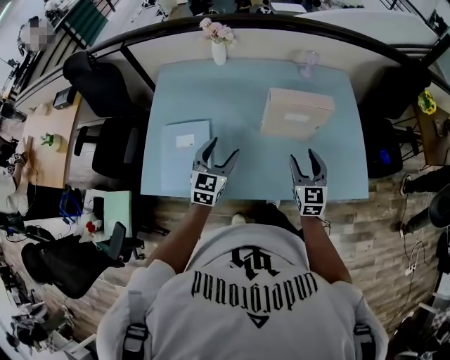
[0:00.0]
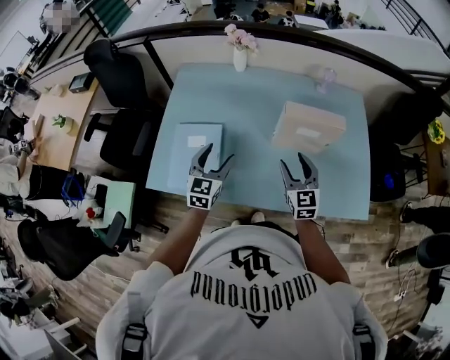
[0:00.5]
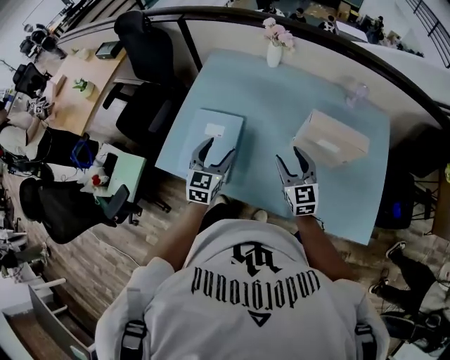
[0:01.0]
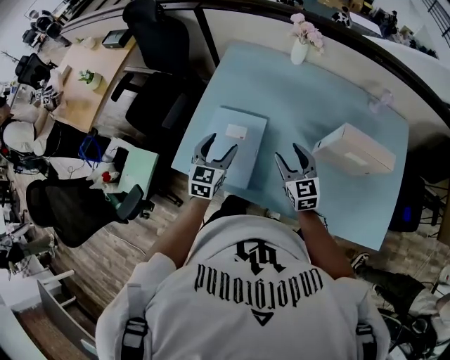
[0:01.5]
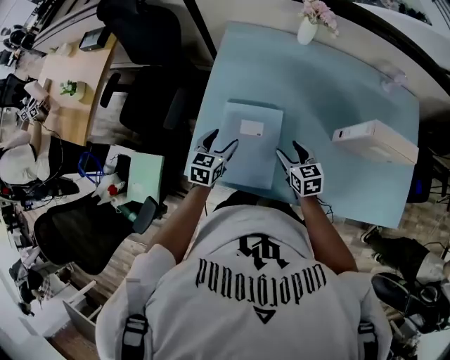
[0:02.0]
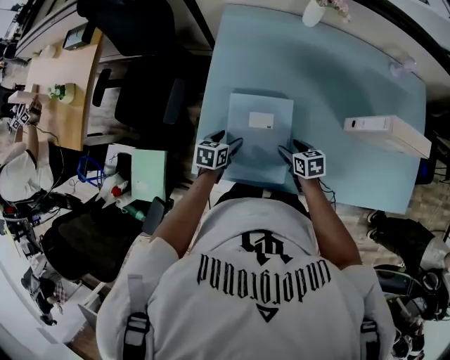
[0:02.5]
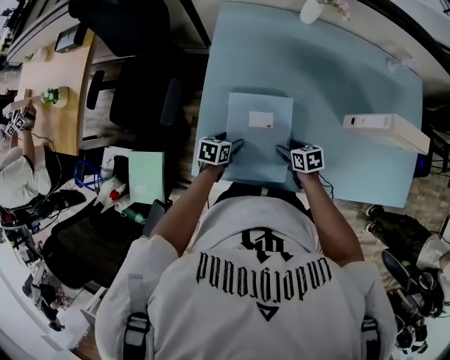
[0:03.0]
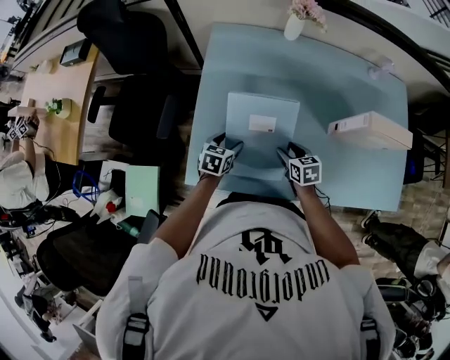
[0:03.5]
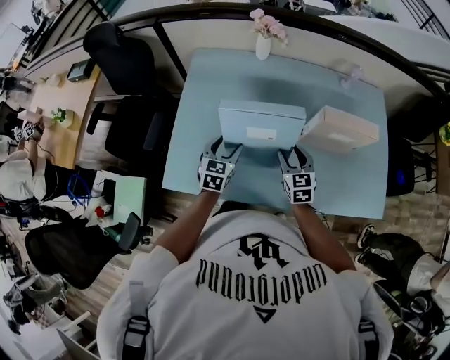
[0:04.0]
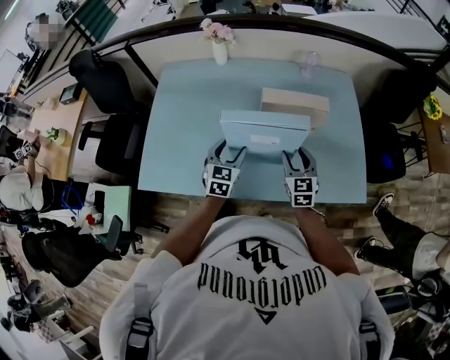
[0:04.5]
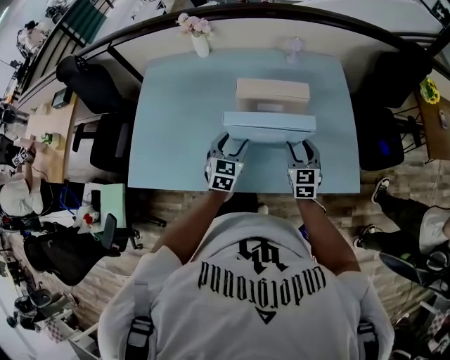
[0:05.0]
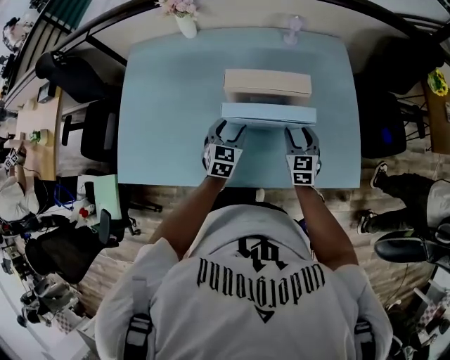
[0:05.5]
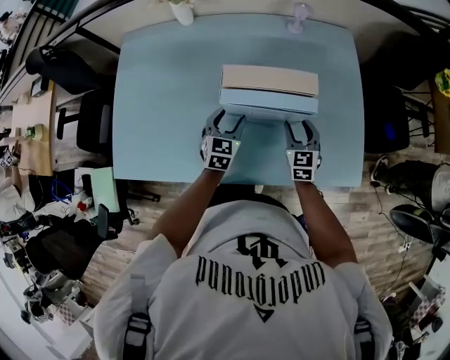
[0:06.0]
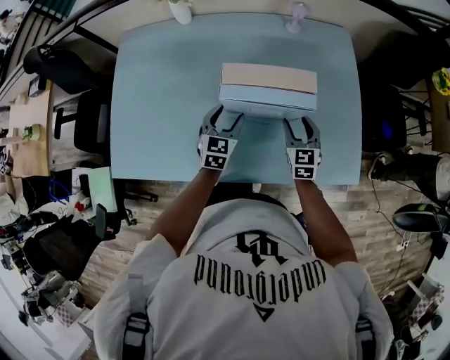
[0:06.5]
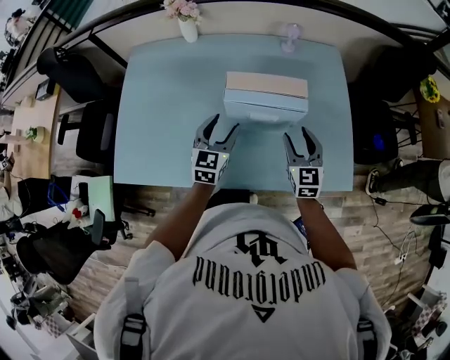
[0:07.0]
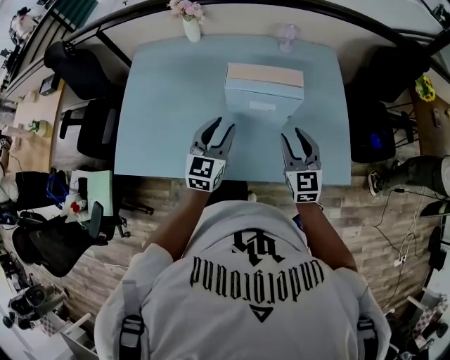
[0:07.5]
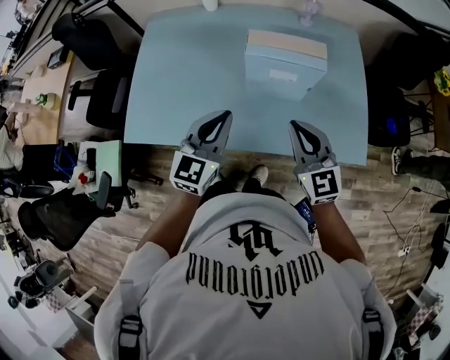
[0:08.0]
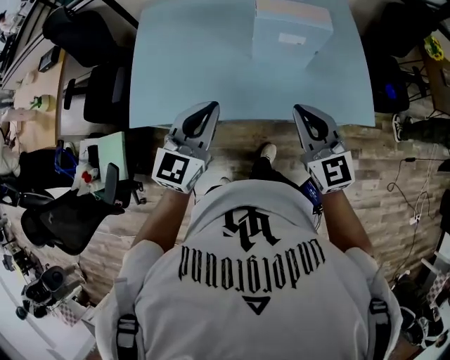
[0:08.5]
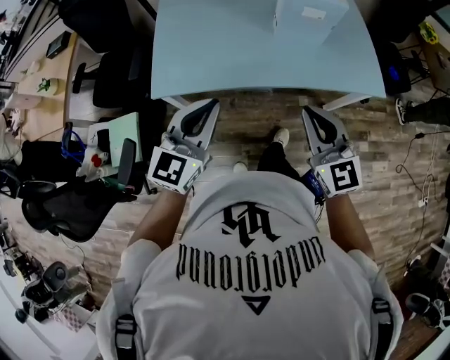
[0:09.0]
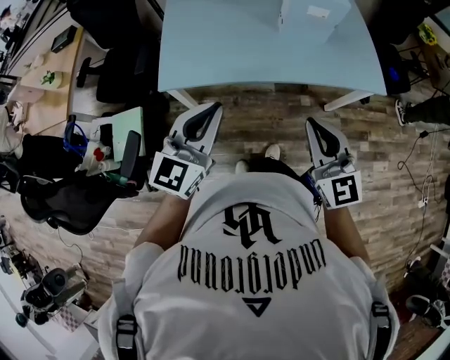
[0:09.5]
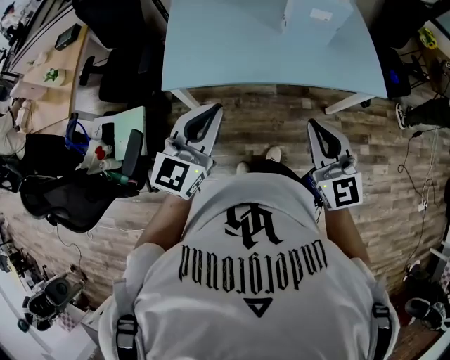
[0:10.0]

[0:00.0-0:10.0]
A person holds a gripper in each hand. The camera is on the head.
0:00.0 to 0:02.0: The right gripper ends up approximately 40 cm from where it was, and changes its angle by roughly 40 degrees. The left gripper changes place by about 35 cm, and turns by roughly 30 degrees.
0:02.0 to 0:04.0: The left gripper goes roughly 15 cm to the right, and moves about 15 cm downward and comes back, while the right gripper travels to the right and upward by roughly 15 cm, and rotates approximately 20 degrees.
0:04.0 to 0:06.0: Both grippers move to the right, about 30 cm.
0:06.0 to 0:08.0: Both grippers move upward and backward, about 30 cm. The left gripper swivels some 20 degrees, and closes; the right gripper turns by roughly 30 degrees, and closes up.
0:08.0 to 0:10.0: The two grippers go roughly 40 cm backward and to the left.

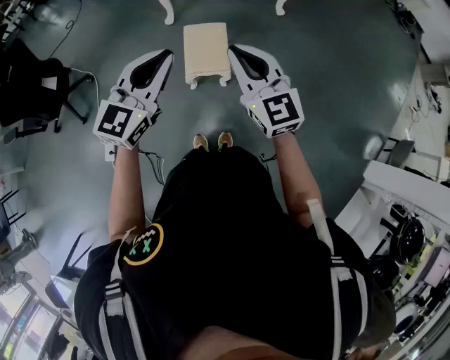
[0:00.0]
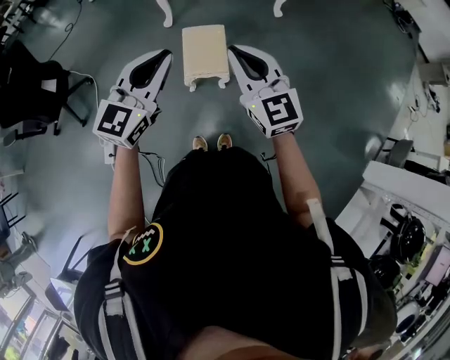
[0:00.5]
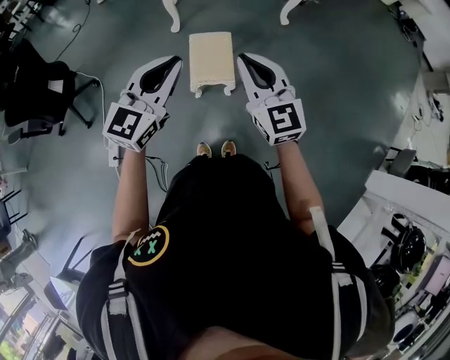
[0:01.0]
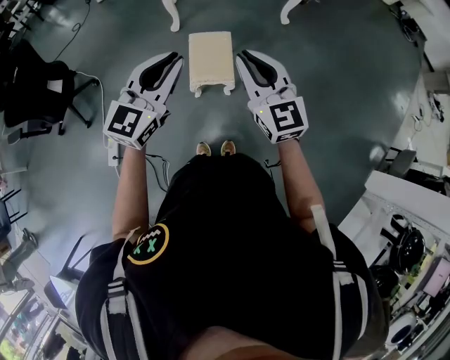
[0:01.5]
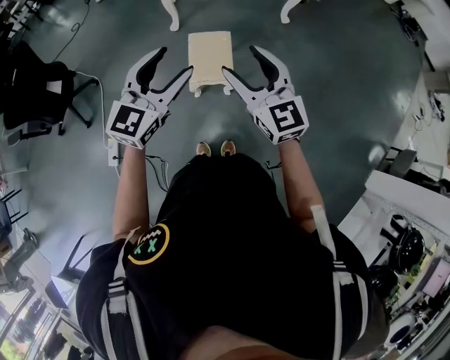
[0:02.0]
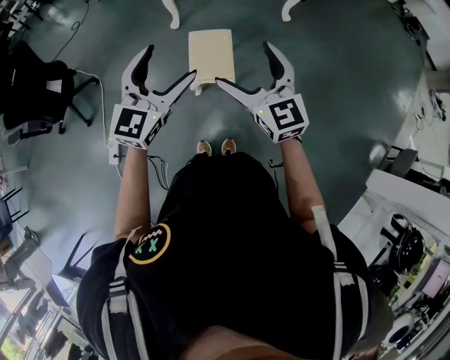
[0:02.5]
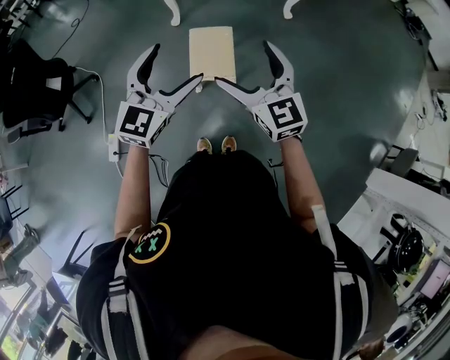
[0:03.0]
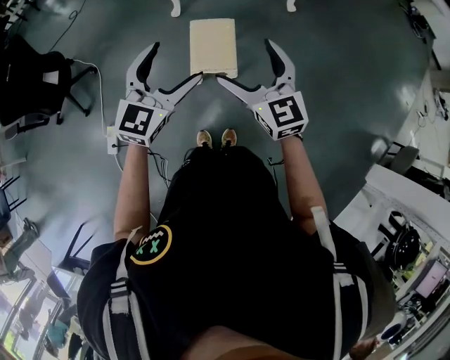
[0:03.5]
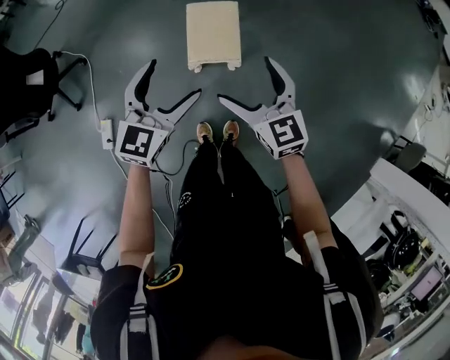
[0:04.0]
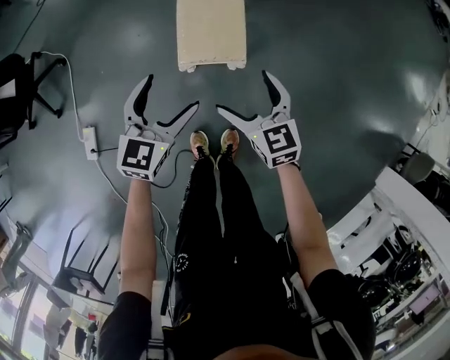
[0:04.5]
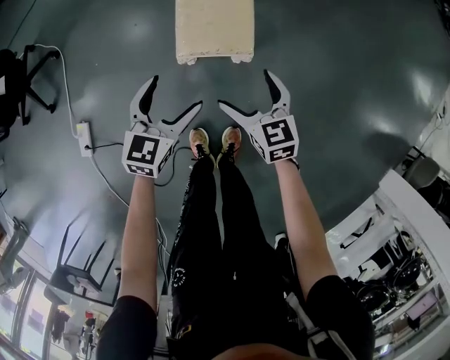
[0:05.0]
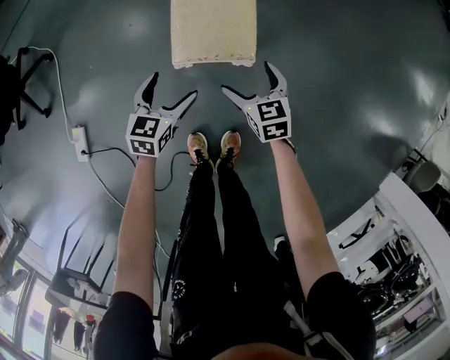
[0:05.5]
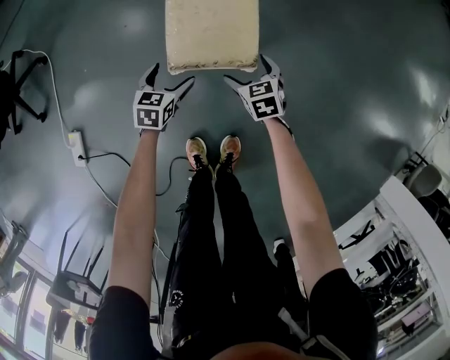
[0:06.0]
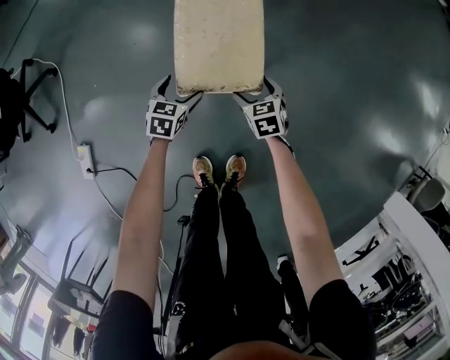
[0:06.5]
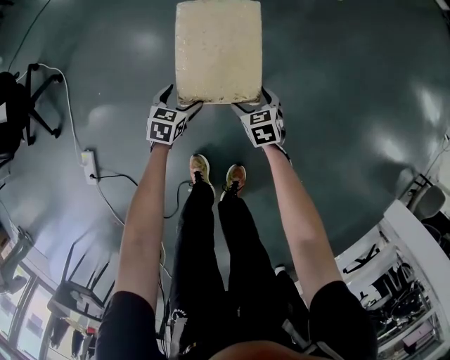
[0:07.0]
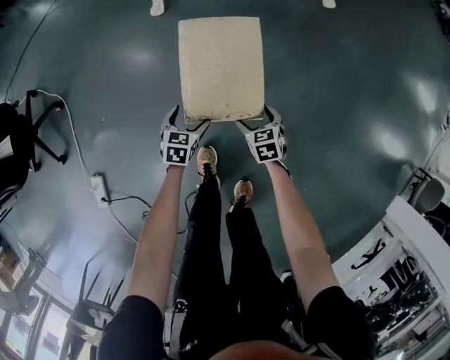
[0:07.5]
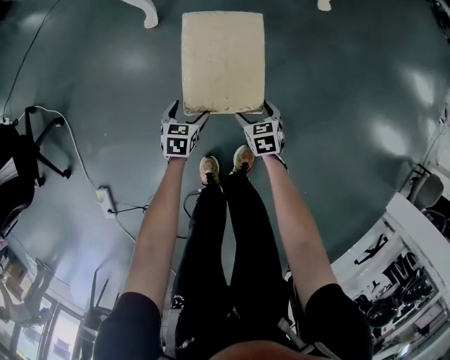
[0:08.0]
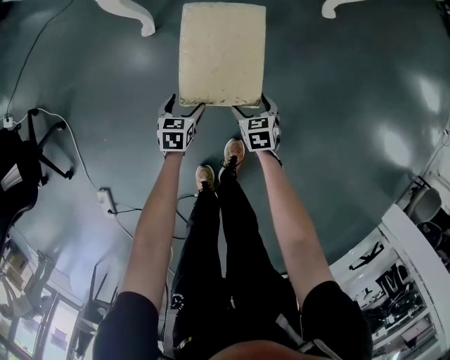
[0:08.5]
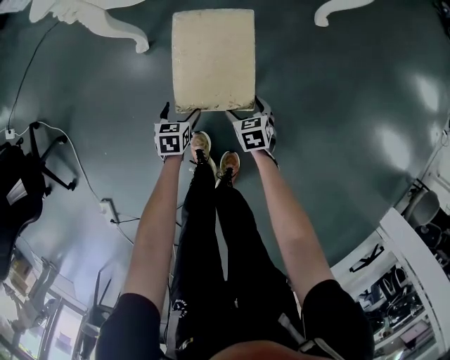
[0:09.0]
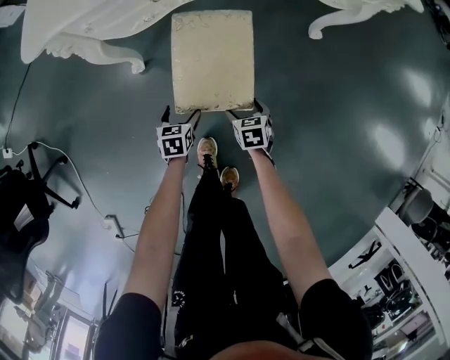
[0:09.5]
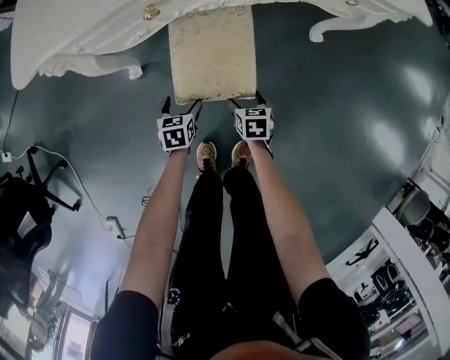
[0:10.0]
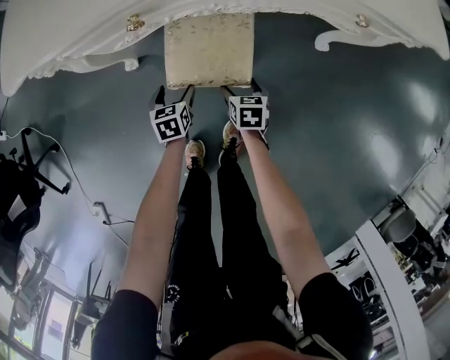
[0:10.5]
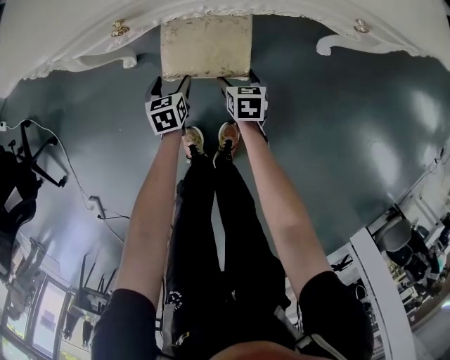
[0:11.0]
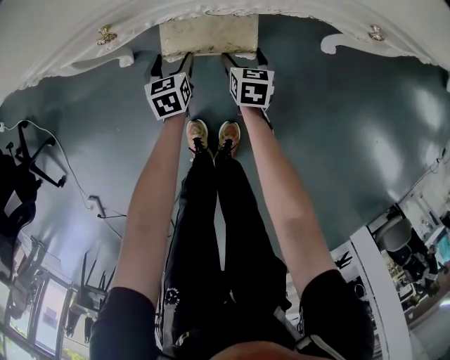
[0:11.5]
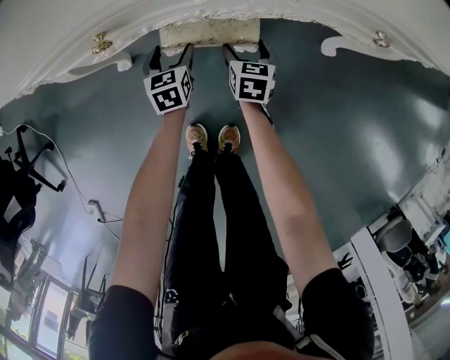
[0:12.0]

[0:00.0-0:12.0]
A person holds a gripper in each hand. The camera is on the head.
0:00.0 to 0:02.0: The right gripper opens its fingers. The left gripper opens its fingers.
0:02.0 to 0:04.0: The two grippers go some 20 cm downward. The left gripper opens. The right gripper opens up.
0:04.0 to 0:06.0: Both grippers travel together downward, about 60 cm. The right gripper tips its fingers downward by approximately 30 degrees. The left gripper turns by about 40 degrees.
0:06.0 to 0:08.0: The two grippers go roughly 20 cm forward.
0:08.0 to 0:10.0: Both grippers move forward, approximately 35 cm.
0:10.0 to 0:12.0: Both grippers travel together forward, approximately 20 cm. The left gripper rotates approximately 20 degrees.

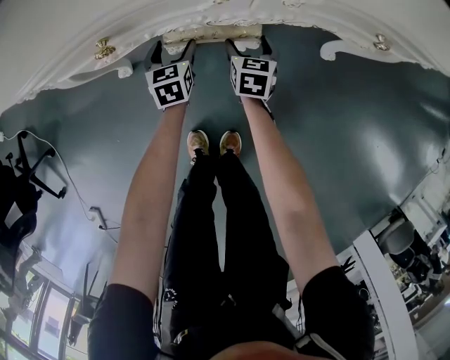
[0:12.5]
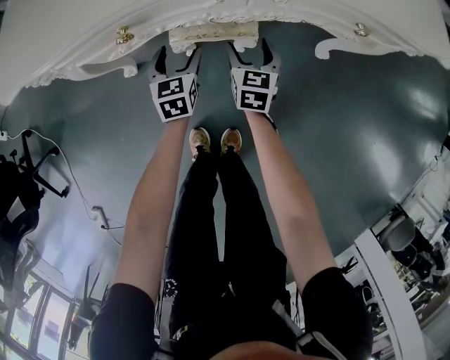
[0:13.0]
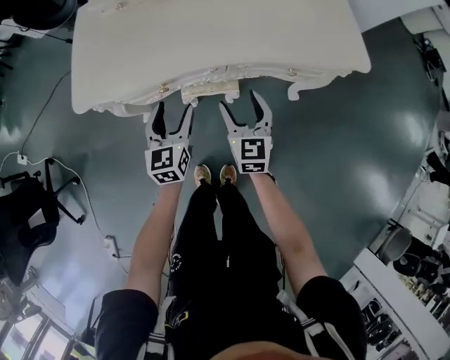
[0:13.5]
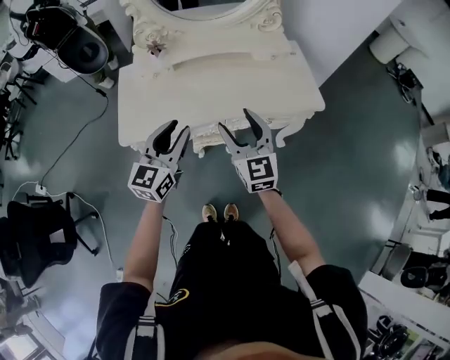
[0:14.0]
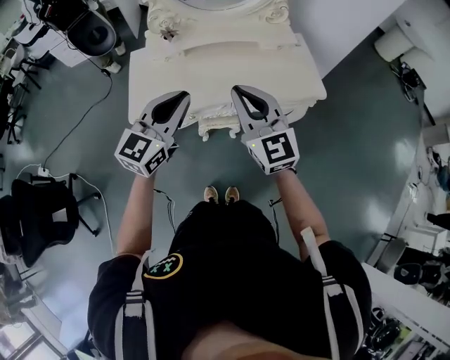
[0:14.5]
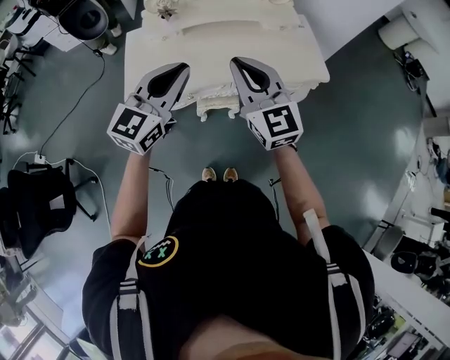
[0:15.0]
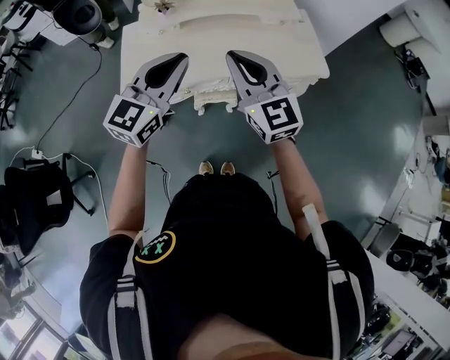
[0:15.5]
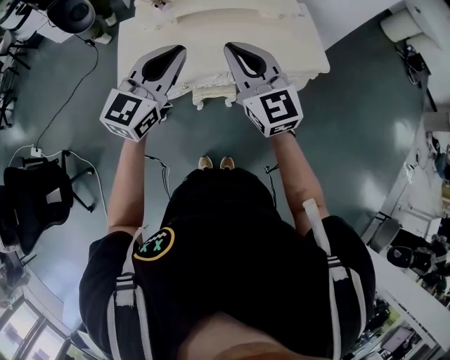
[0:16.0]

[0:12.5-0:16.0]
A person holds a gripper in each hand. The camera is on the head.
0:12.5 to 0:14.5: Both grippers travel together upward, approximately 80 cm. The left gripper tilts its fingers some 40 degrees upward, and closes its fingers; the right gripper tilts its fingers some 40 degrees upward, and closes.
0:14.5 to 0:16.0: The grippers stay close to where they were, moving slightly.

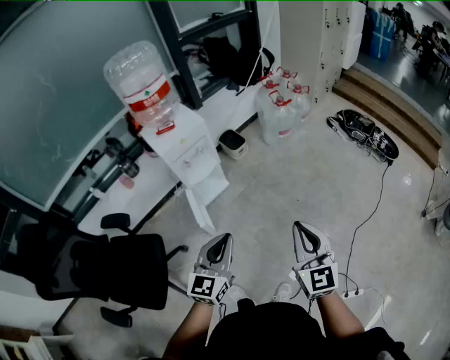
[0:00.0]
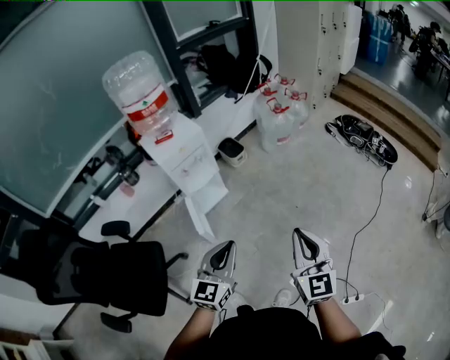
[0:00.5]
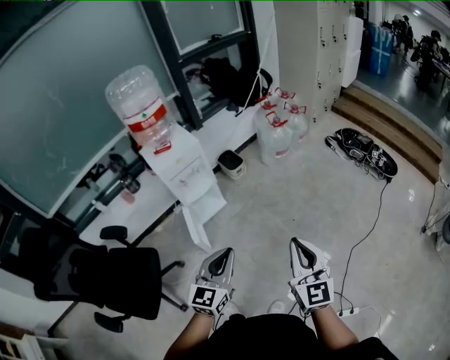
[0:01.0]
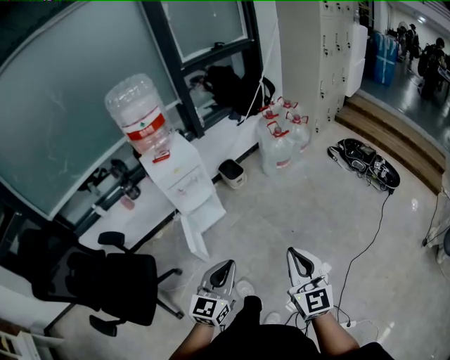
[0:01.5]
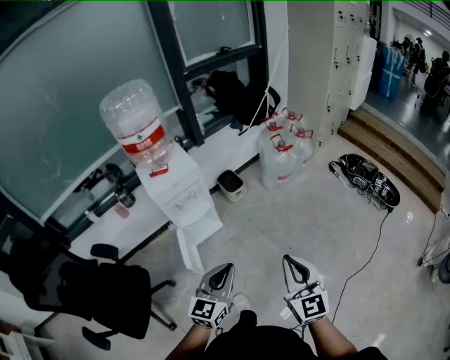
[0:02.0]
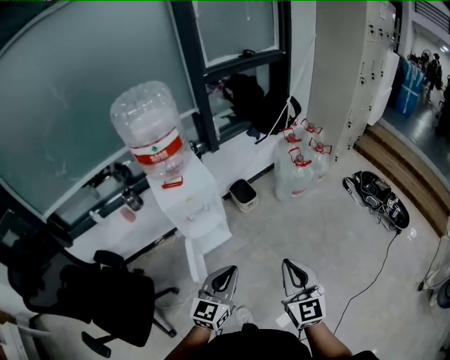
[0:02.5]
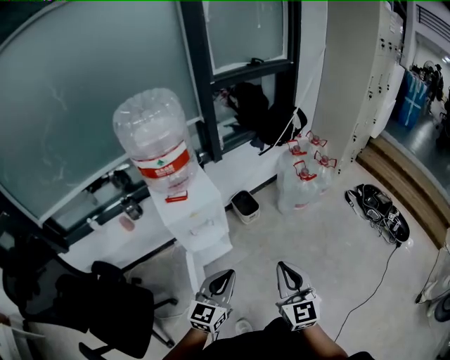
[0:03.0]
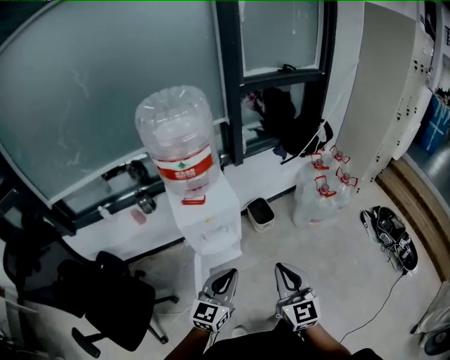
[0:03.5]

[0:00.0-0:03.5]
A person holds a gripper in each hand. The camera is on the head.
0:00.0 to 0:02.0: The right gripper travels forward by some 10 cm. Meanwhile the left gripper shifts approximately 15 cm forward and to the right.
0:02.0 to 0:03.5: Both grippers travel together forward and to the left, some 25 cm.
